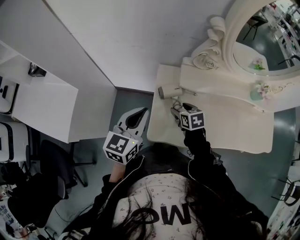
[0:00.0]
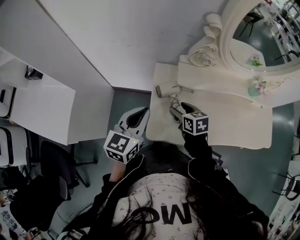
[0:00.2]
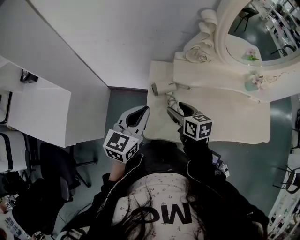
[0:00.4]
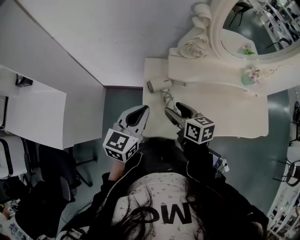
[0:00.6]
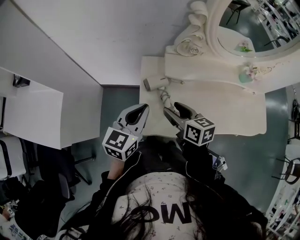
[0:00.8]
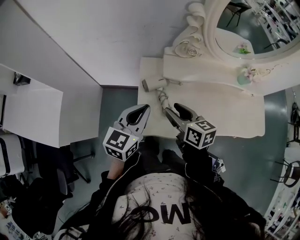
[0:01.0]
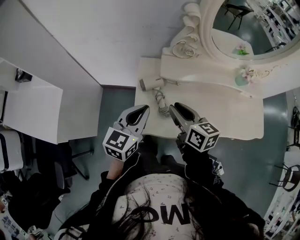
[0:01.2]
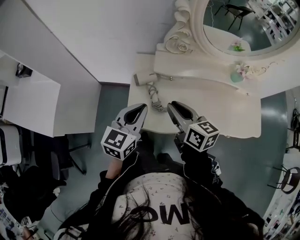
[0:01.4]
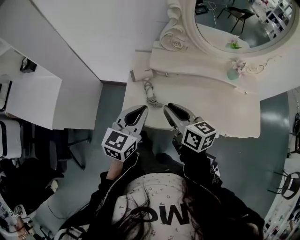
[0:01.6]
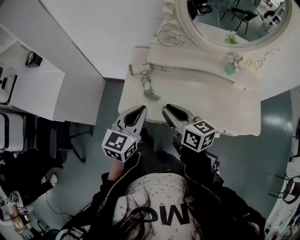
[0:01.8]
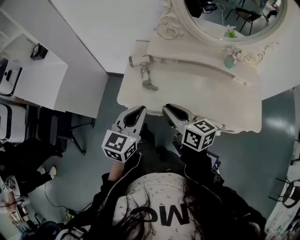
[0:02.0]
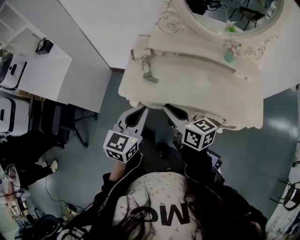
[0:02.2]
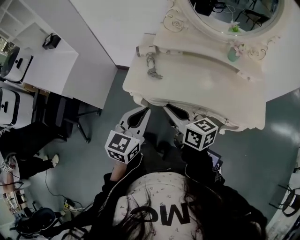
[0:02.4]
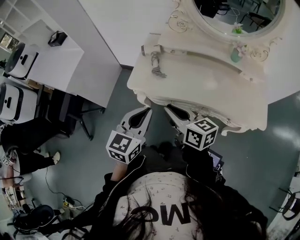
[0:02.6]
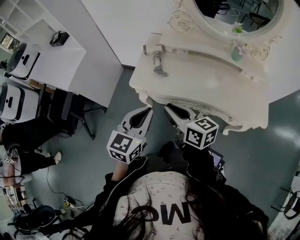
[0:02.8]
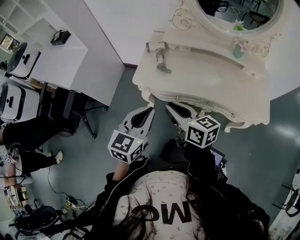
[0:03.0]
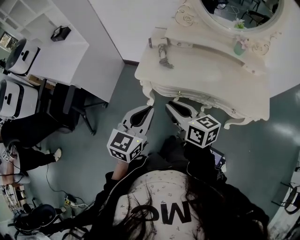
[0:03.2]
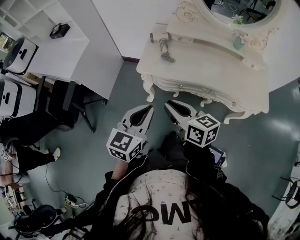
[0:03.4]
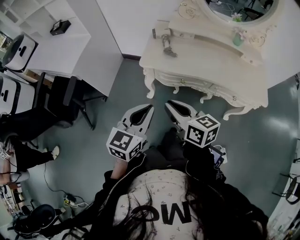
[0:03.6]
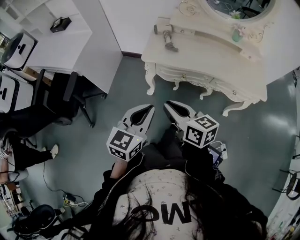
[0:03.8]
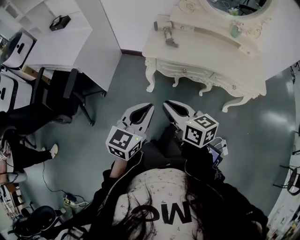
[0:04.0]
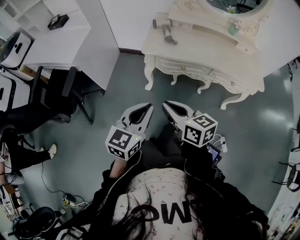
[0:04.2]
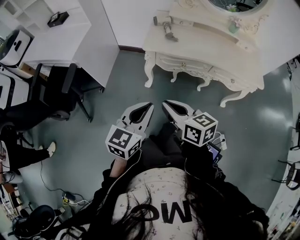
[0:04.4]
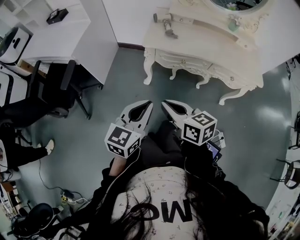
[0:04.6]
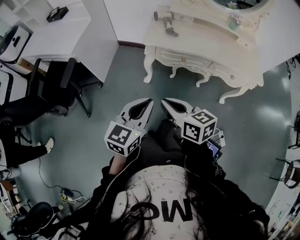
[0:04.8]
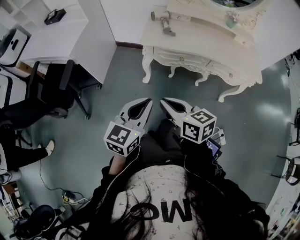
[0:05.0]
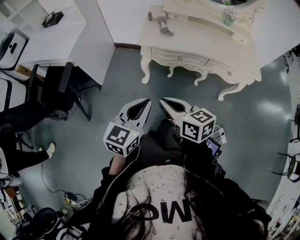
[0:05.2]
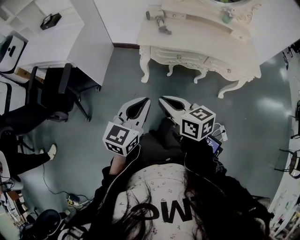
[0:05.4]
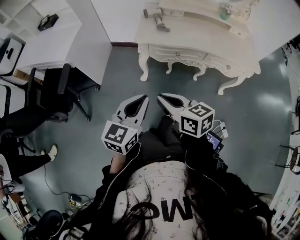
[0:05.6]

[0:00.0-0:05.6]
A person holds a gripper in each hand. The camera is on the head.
0:00.0 to 0:01.4: The left gripper shifts some 10 cm to the right, while the right gripper heads upward and backward, covering some 20 cm, tips its fingers upward by roughly 30 degrees, and closes.
0:01.4 to 0:02.8: Both grippers travel together backward, about 25 cm. The right gripper changes its angle by some 20 degrees.
0:02.8 to 0:04.2: The two grippers go about 25 cm backward and to the left.
0:04.2 to 0:05.6: The grippers make only small movements.

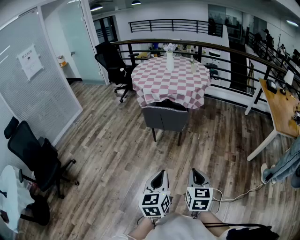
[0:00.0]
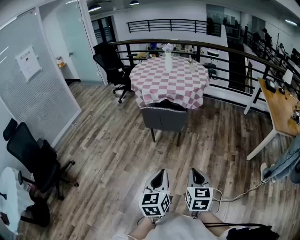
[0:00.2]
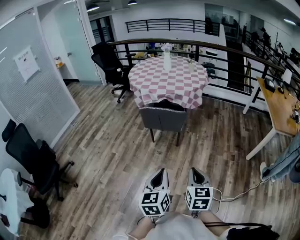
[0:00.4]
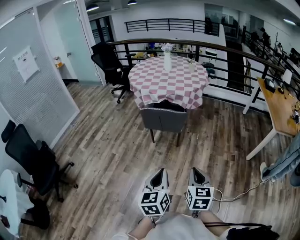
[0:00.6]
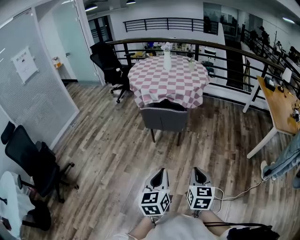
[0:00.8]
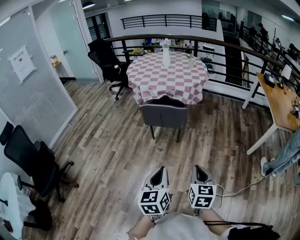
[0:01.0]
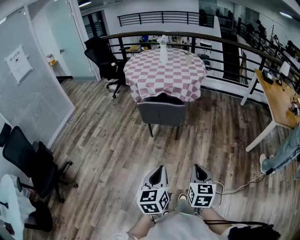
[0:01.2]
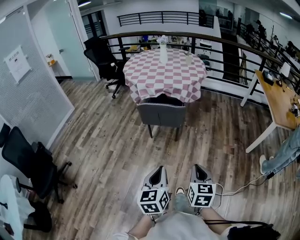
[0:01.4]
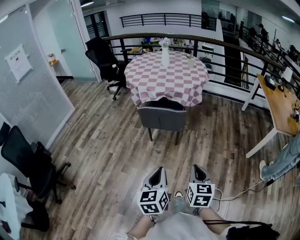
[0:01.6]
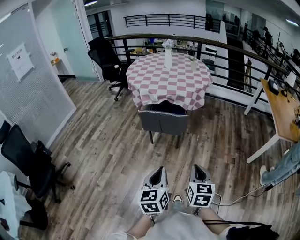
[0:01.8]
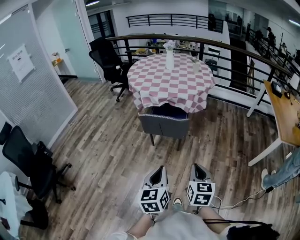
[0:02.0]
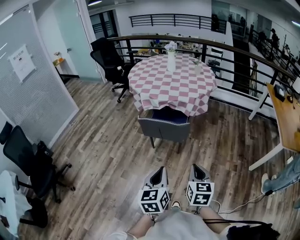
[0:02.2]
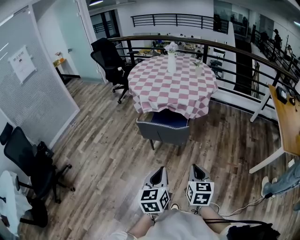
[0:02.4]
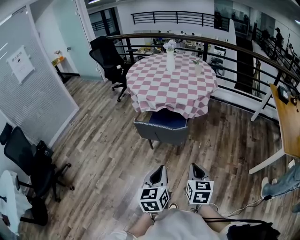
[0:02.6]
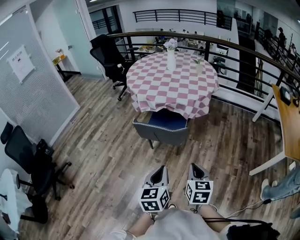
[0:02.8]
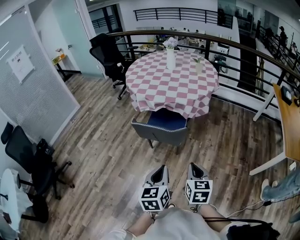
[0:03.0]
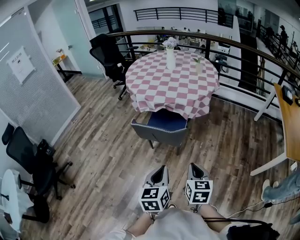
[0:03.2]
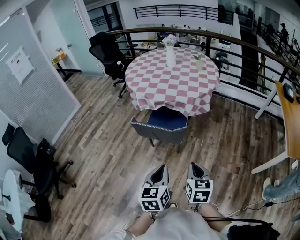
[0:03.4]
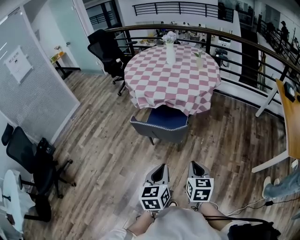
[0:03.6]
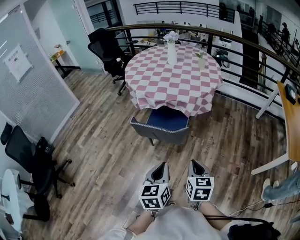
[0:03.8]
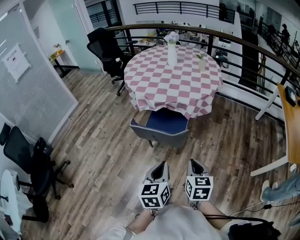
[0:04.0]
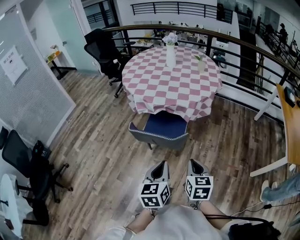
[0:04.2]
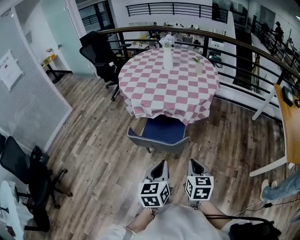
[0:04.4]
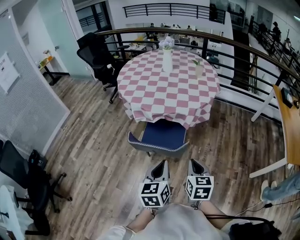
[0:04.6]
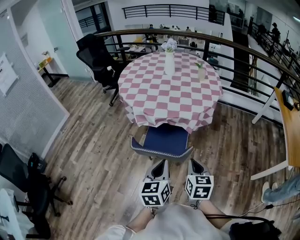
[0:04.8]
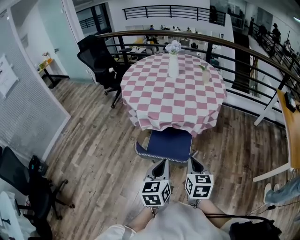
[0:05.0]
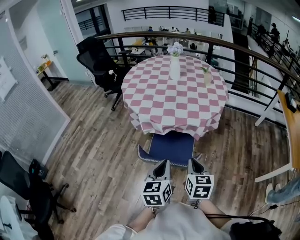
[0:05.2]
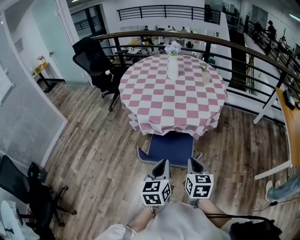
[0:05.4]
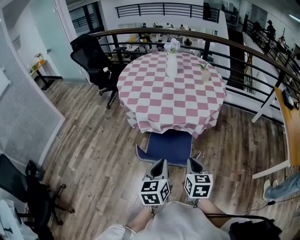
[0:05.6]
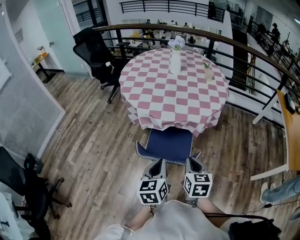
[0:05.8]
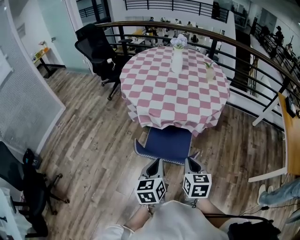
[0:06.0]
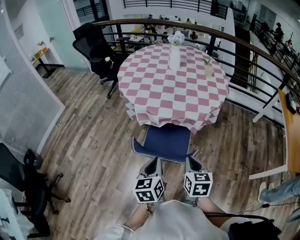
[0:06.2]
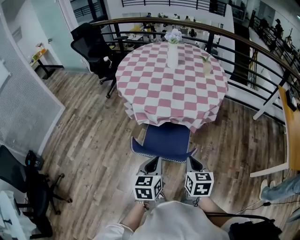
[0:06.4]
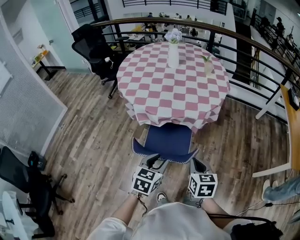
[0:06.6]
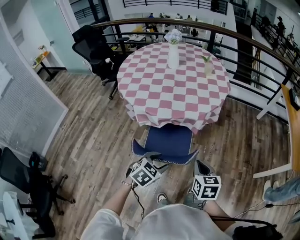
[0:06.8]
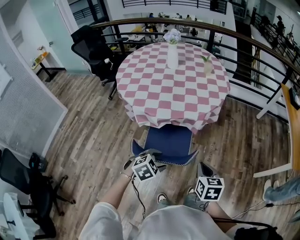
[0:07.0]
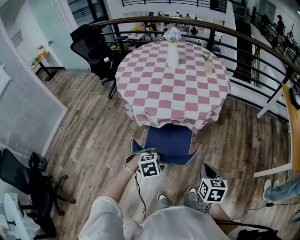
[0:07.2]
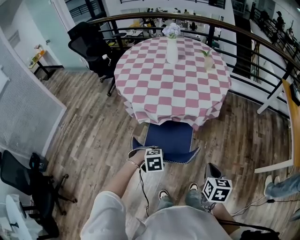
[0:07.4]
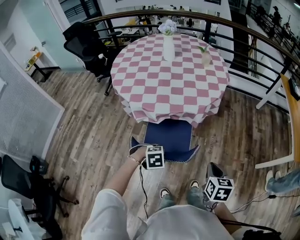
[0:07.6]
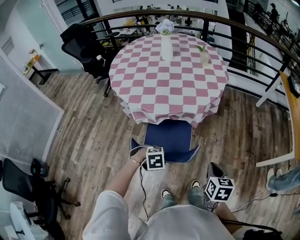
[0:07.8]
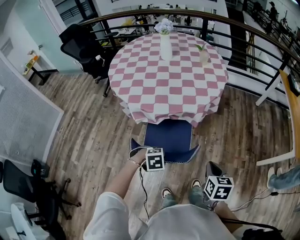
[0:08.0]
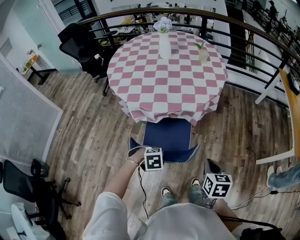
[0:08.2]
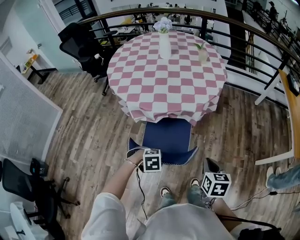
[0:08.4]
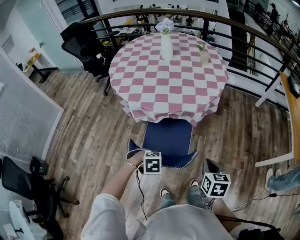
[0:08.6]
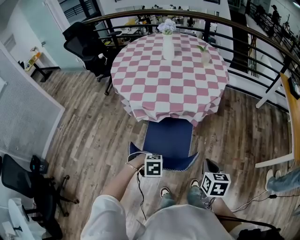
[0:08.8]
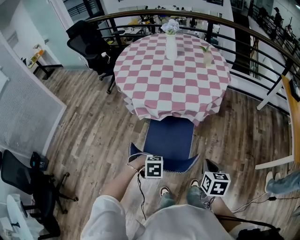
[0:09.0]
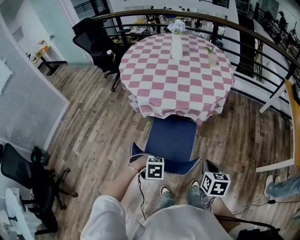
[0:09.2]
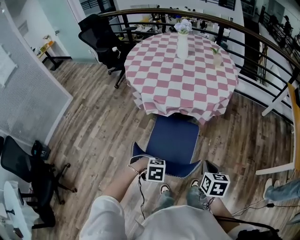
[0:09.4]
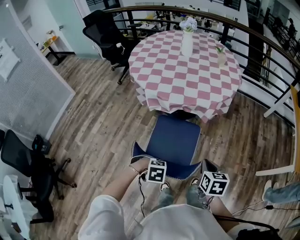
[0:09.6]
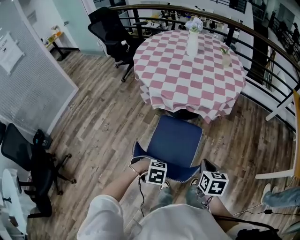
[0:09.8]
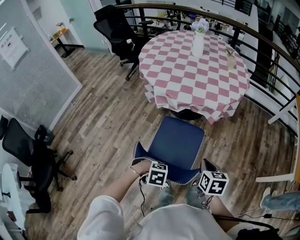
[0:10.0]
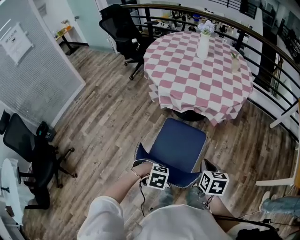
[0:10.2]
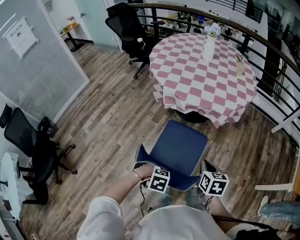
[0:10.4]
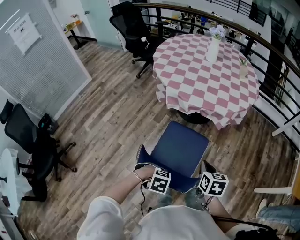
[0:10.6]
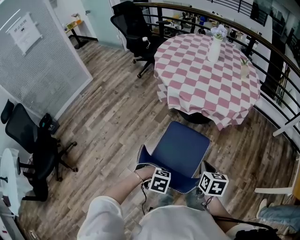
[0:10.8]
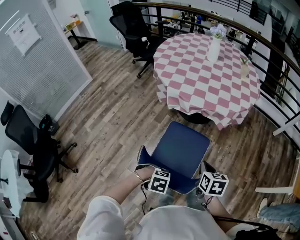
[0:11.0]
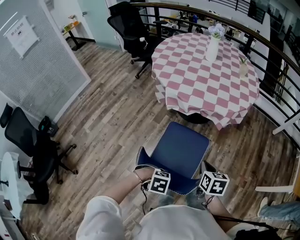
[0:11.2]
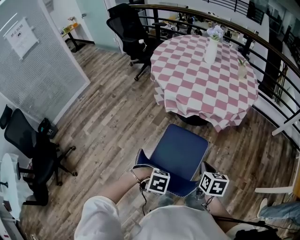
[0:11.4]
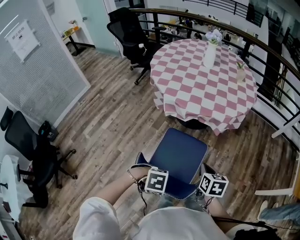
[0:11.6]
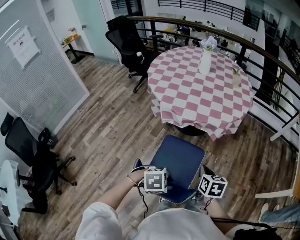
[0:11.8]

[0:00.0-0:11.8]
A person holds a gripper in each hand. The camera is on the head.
0:00.0 to 0:01.4: The left gripper changes place by roughly 5 cm.
0:01.4 to 0:03.0: The left gripper heads forward and to the right, covering some 25 cm; the right gripper is displaced forward by about 25 cm.
0:03.0 to 0:04.4: Both grippers travel together forward, some 15 cm.
0:04.4 to 0:06.0: The two grippers go approximately 15 cm forward and to the left.
0:06.0 to 0:07.4: The left gripper travels downward by some 15 cm, angles its fingers downward, by about 50 degrees, and opens up. The right gripper moves some 15 cm.
0:07.4 to 0:08.8: The left gripper ends up roughly 5 cm from where it was, and closes its fingers.
0:08.8 to 0:10.4: The right gripper moves roughly 10 cm, while the left gripper ends up some 15 cm from where it was.
0:10.4 to 0:11.8: The left gripper shifts about 10 cm upward, and turns by roughly 20 degrees.

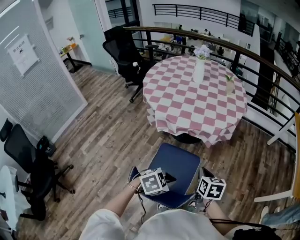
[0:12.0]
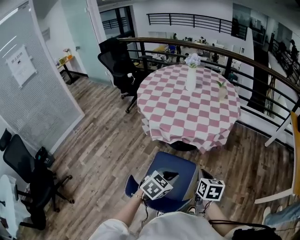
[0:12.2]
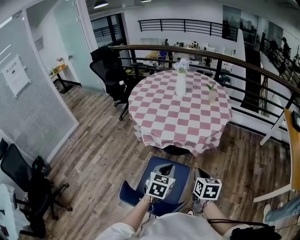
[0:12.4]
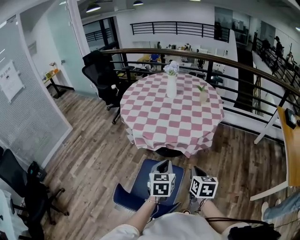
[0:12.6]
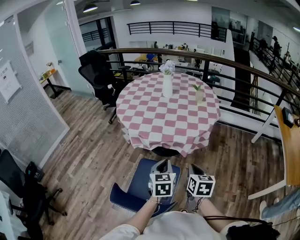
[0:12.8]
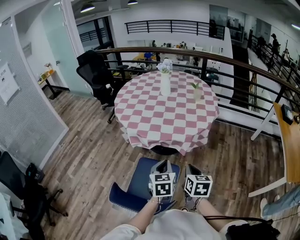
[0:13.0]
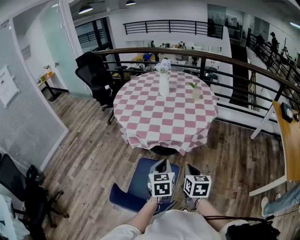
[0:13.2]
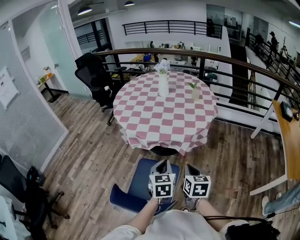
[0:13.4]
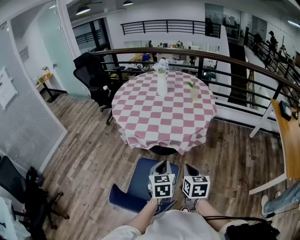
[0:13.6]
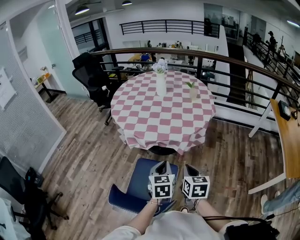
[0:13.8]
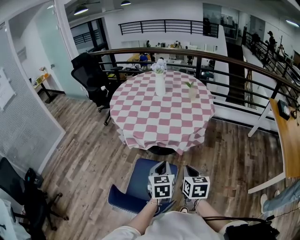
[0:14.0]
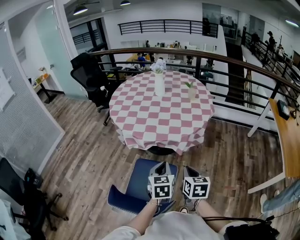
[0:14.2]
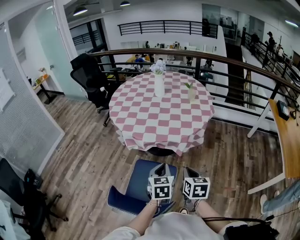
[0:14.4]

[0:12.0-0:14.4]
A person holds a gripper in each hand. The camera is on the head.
0:12.0 to 0:13.2: The left gripper shifts by some 15 cm, and changes its angle by about 60 degrees. Meanwhile the right gripper moves about 10 cm.
0:13.2 to 0:14.4: There are only small adjustments of the grippers.

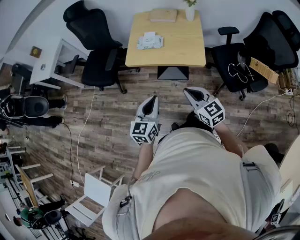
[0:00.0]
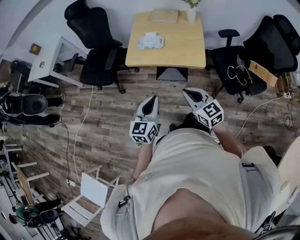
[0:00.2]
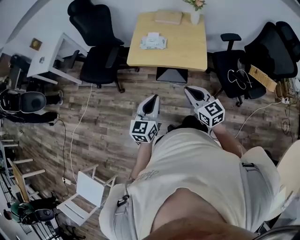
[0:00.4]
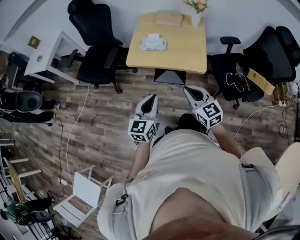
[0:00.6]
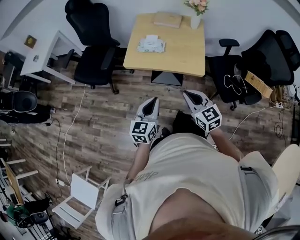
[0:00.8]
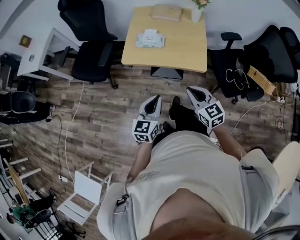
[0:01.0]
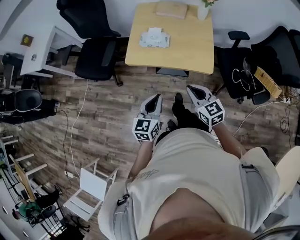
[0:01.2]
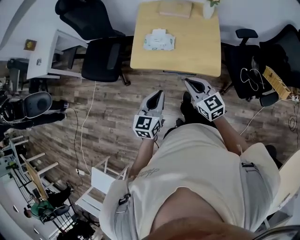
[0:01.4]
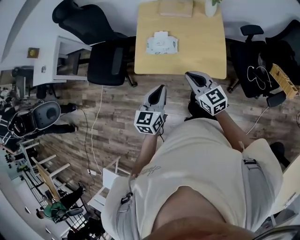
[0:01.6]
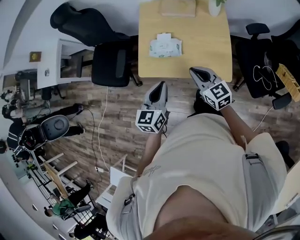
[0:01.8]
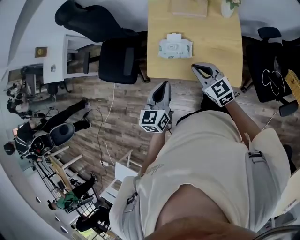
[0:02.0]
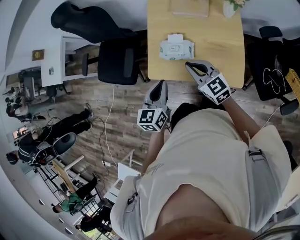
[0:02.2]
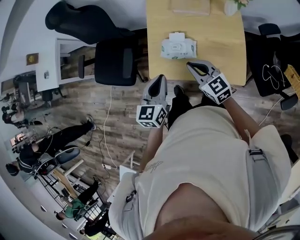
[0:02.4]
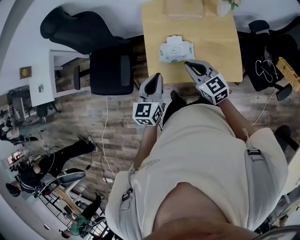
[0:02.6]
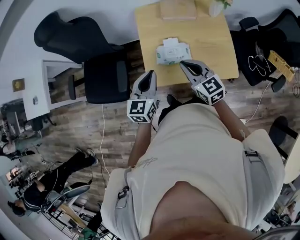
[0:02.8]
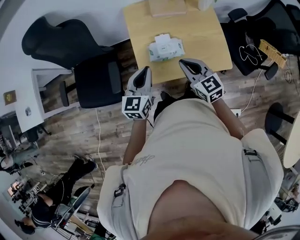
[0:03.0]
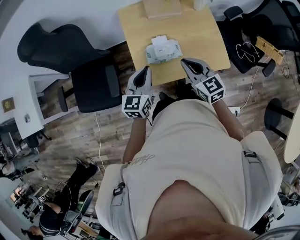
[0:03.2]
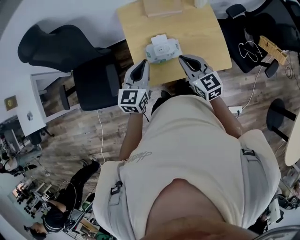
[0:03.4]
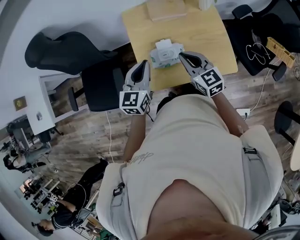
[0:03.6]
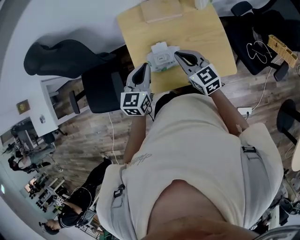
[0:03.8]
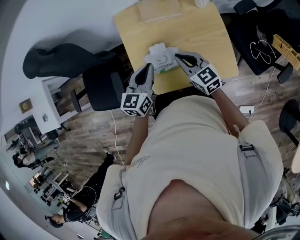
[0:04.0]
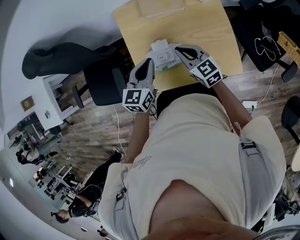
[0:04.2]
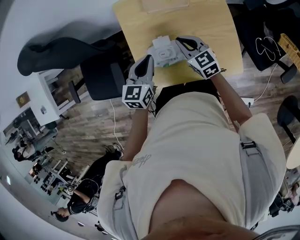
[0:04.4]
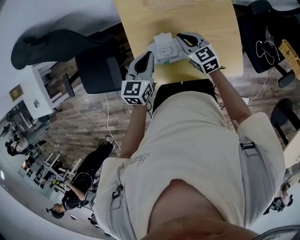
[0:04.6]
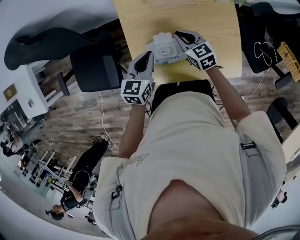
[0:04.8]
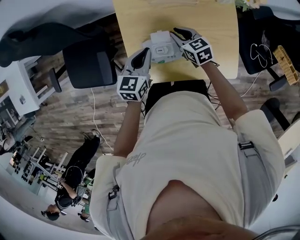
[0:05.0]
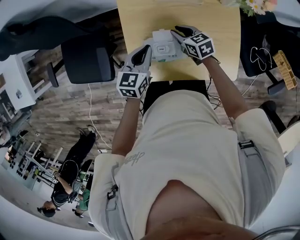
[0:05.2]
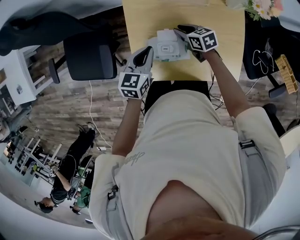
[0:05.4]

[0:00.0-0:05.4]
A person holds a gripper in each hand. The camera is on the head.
0:00.0 to 0:01.4: The two grippers go about 20 cm forward.
0:01.4 to 0:02.8: Both grippers travel together forward and to the left, some 25 cm.
0:02.8 to 0:04.0: The right gripper is displaced forward, to the right and downward by some 15 cm. Meanwhile the left gripper heads forward and to the right, covering about 15 cm.
0:04.0 to 0:05.4: The right gripper goes roughly 20 cm downward and forward, and turns by roughly 40 degrees, while the left gripper heads downward and forward, covering approximately 10 cm.
